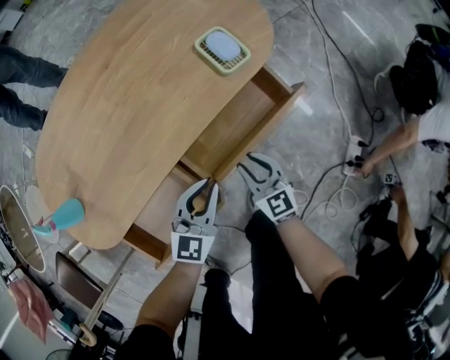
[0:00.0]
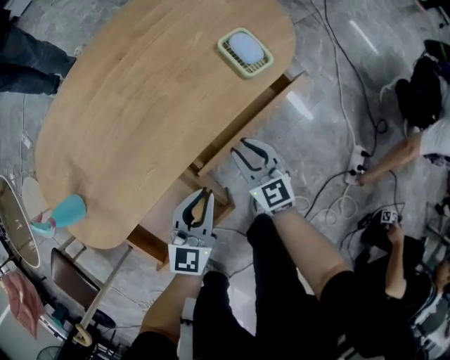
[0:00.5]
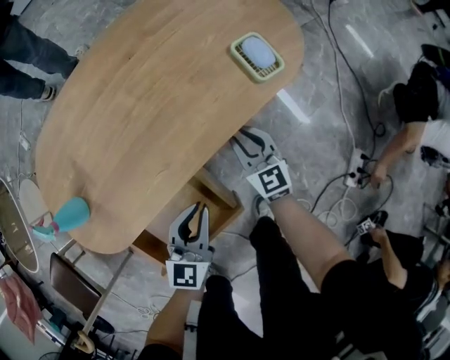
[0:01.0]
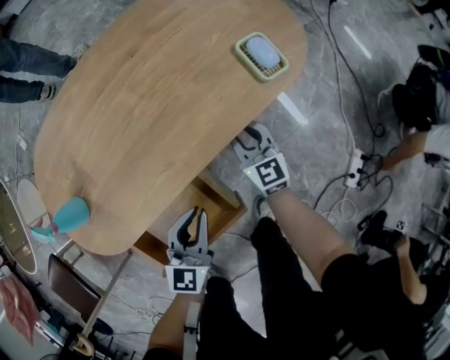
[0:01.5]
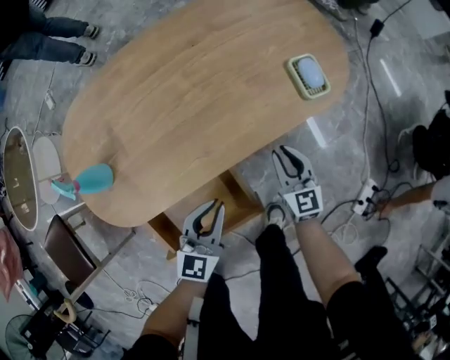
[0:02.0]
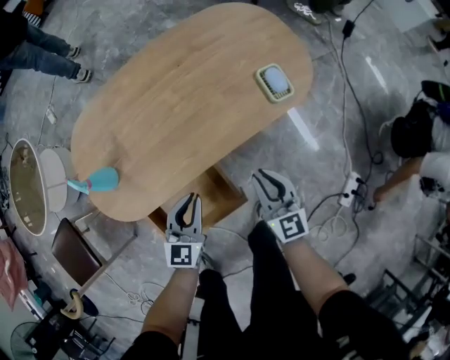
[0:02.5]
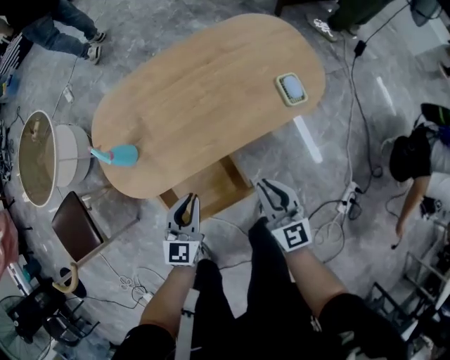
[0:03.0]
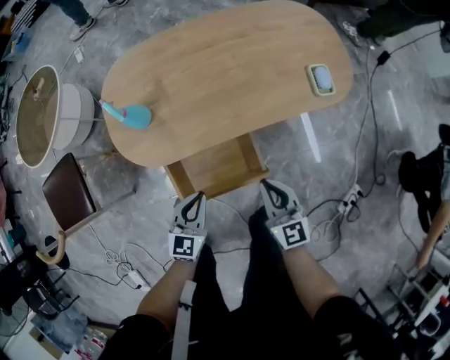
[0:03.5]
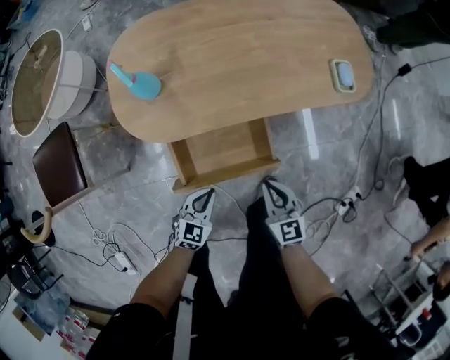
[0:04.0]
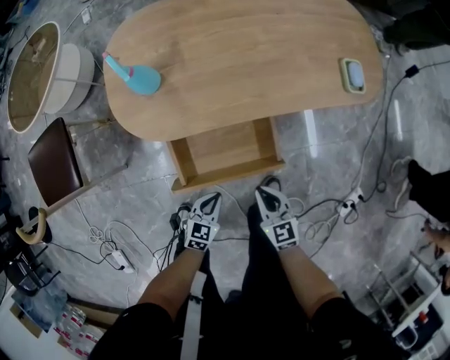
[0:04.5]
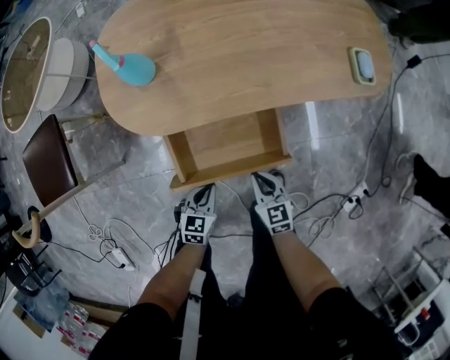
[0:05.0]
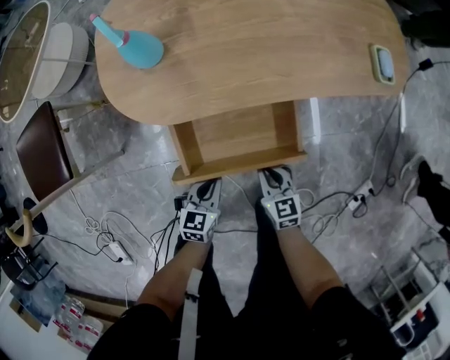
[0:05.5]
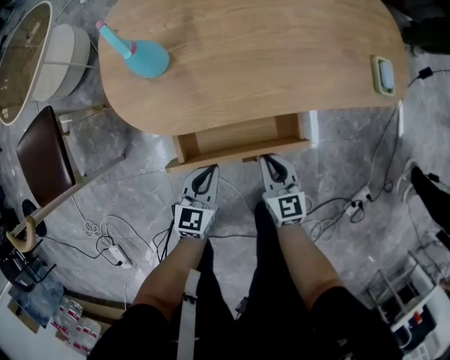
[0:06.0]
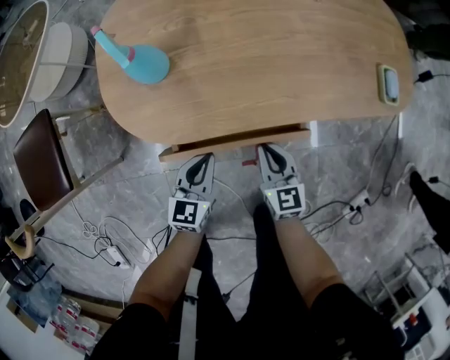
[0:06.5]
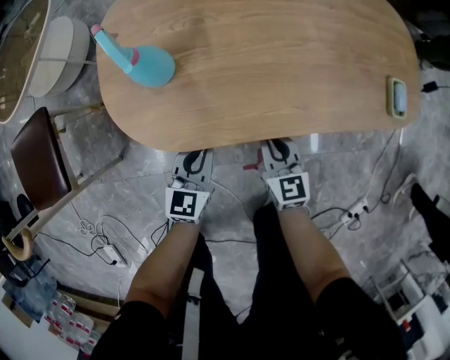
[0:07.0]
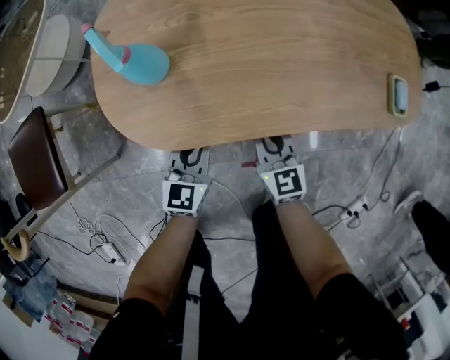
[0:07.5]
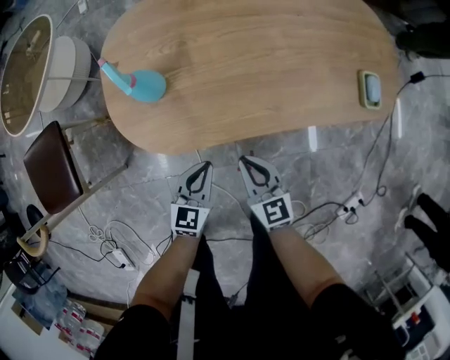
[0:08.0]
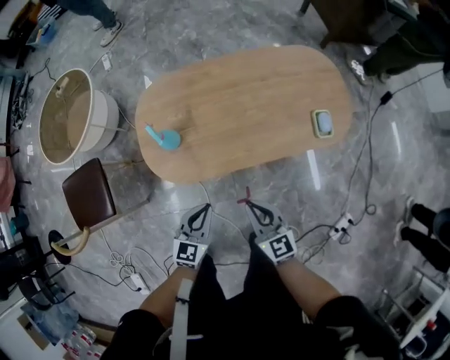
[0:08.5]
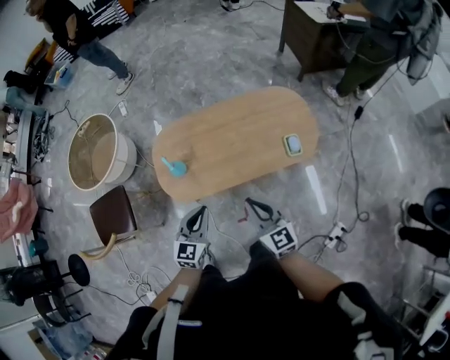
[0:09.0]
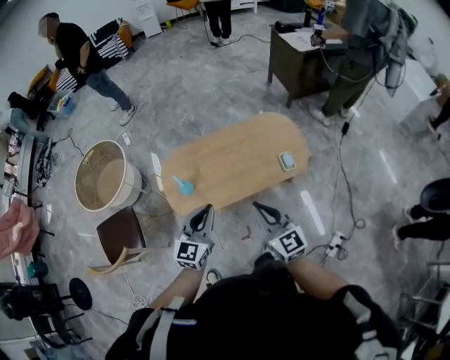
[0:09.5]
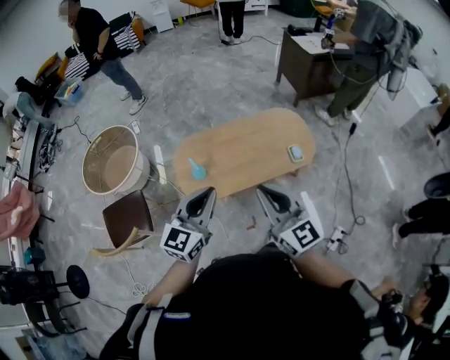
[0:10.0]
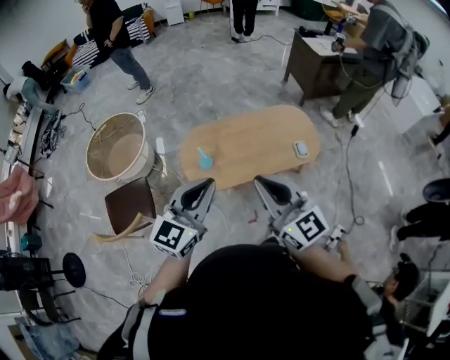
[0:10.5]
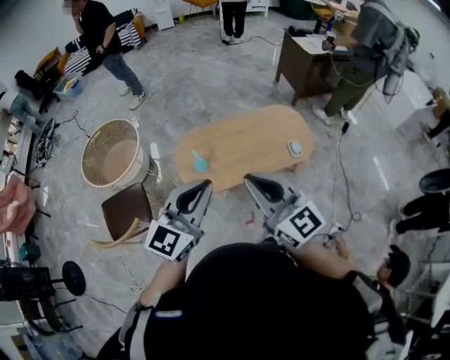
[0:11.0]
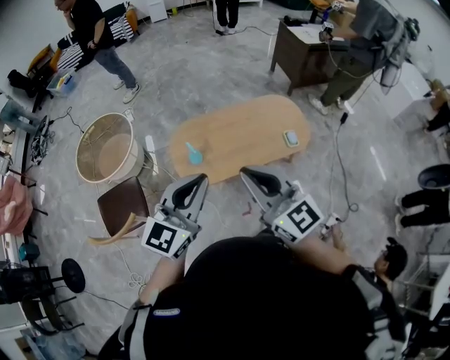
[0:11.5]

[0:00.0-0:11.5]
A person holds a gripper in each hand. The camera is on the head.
0:00.0 to 0:02.0: The right gripper moves forward and to the left, some 10 cm. Meanwhile the left gripper heads to the left, covering approximately 15 cm, and changes its angle by roughly 20 degrees.
0:02.0 to 0:04.0: Both grippers travel together backward and to the left, roughly 20 cm.
0:04.0 to 0:06.0: The left gripper is displaced forward by about 5 cm, and swivels some 20 degrees; the right gripper moves downward, forward and to the left, some 15 cm.
0:06.0 to 0:07.5: The two grippers go some 15 cm forward.
0:07.5 to 0:09.5: Both grippers travel together upward, approximately 50 cm. The left gripper swivels approximately 20 degrees.
0:09.5 to 0:11.5: The right gripper shifts roughly 25 cm upward and to the left, while the left gripper travels upward, to the left and backward by some 25 cm.

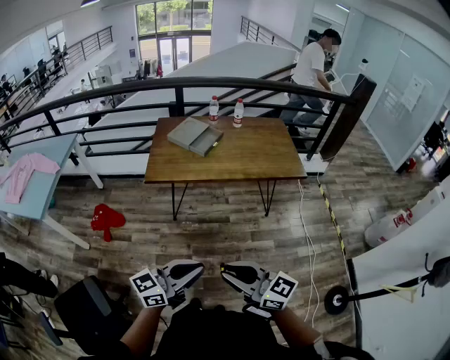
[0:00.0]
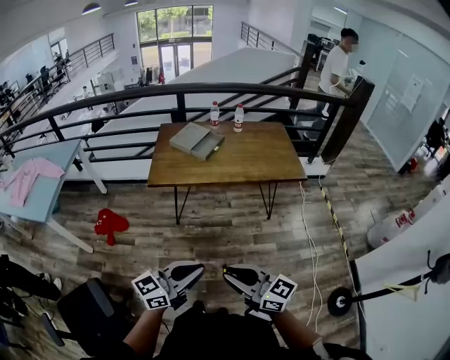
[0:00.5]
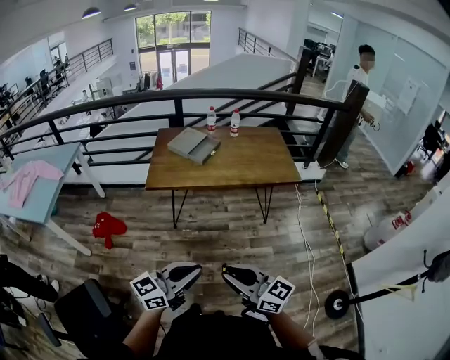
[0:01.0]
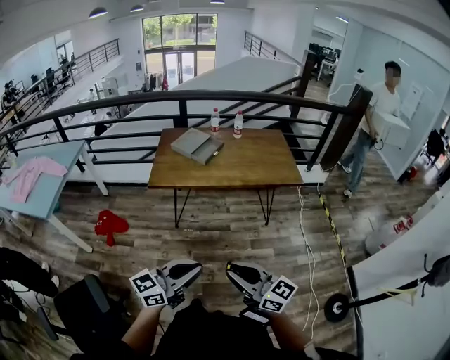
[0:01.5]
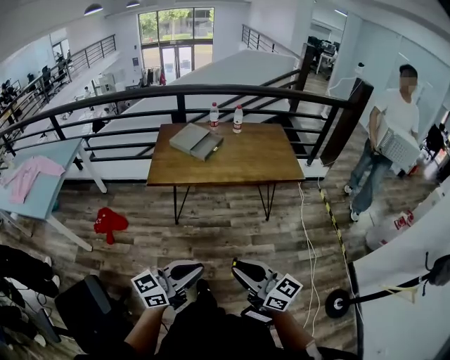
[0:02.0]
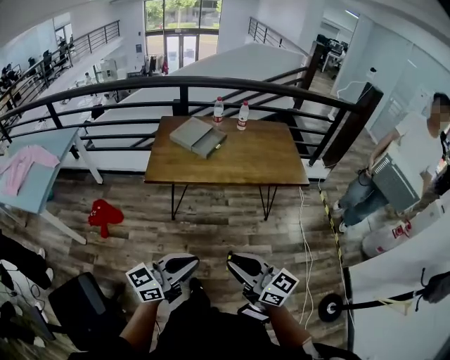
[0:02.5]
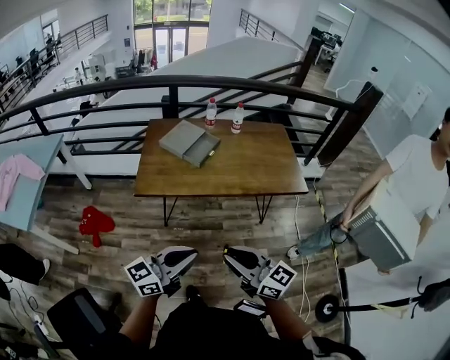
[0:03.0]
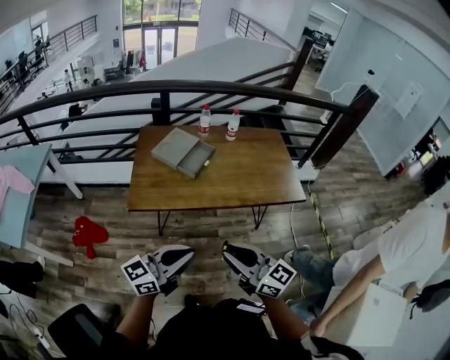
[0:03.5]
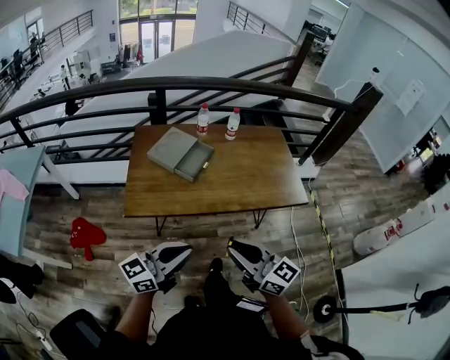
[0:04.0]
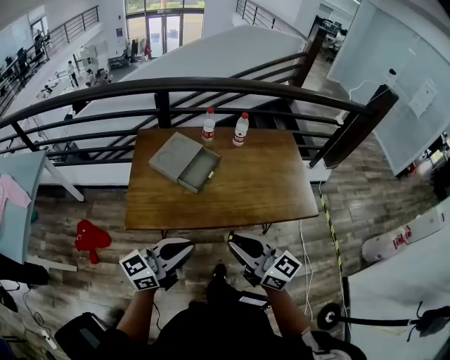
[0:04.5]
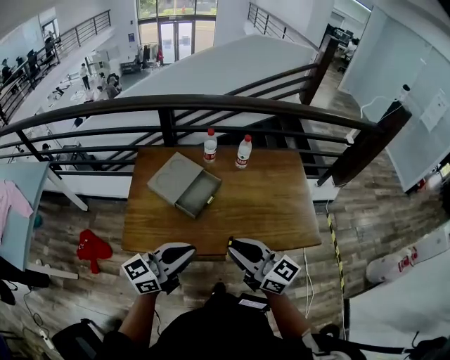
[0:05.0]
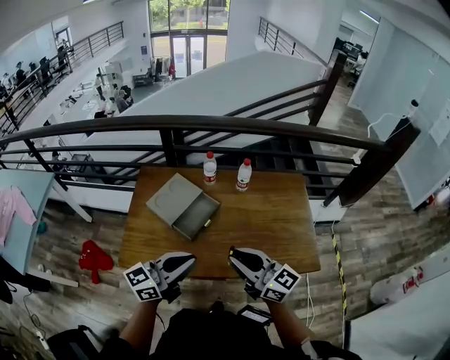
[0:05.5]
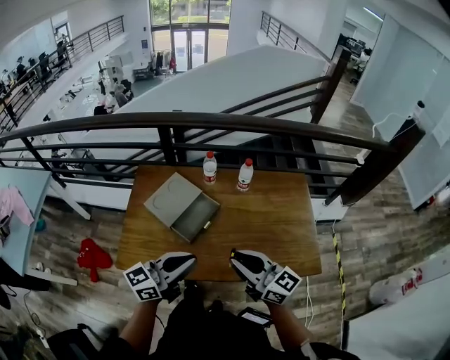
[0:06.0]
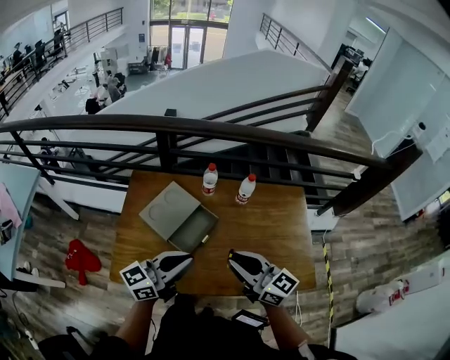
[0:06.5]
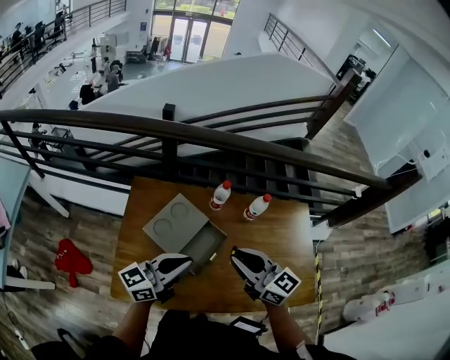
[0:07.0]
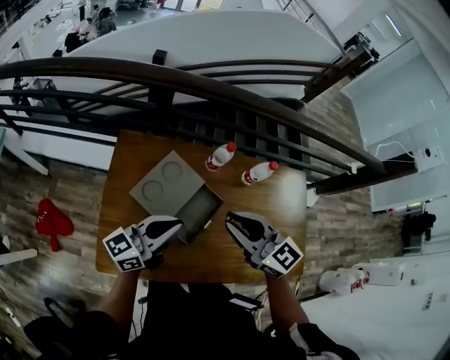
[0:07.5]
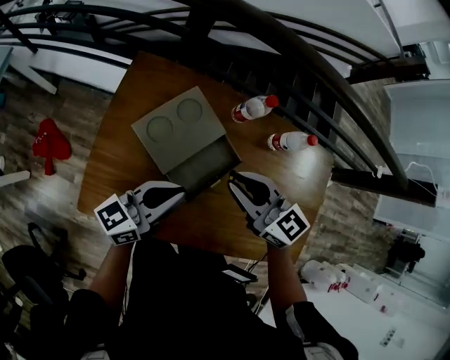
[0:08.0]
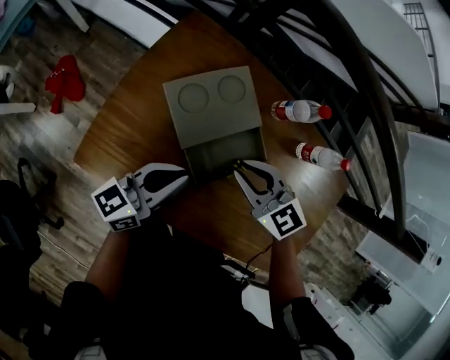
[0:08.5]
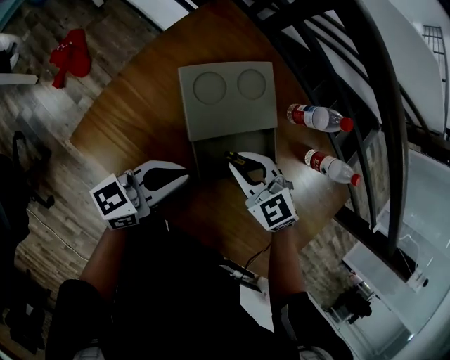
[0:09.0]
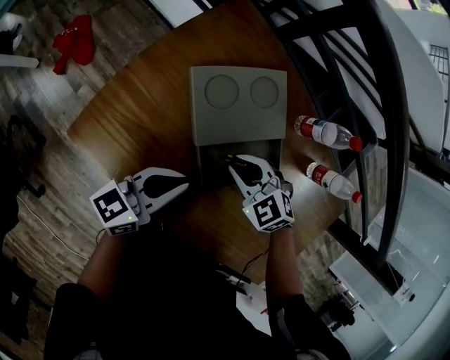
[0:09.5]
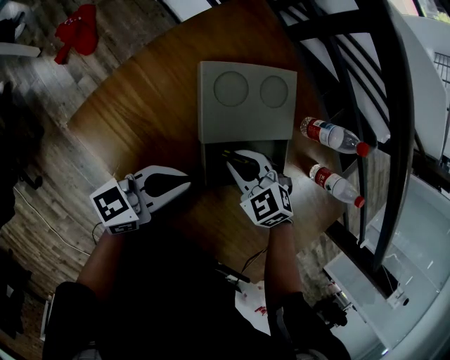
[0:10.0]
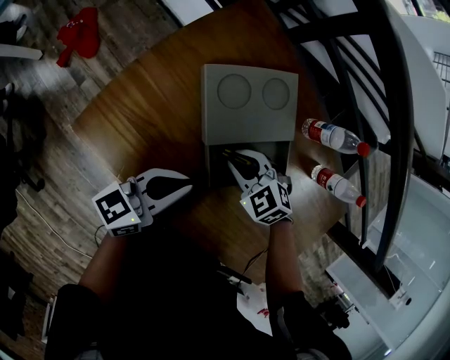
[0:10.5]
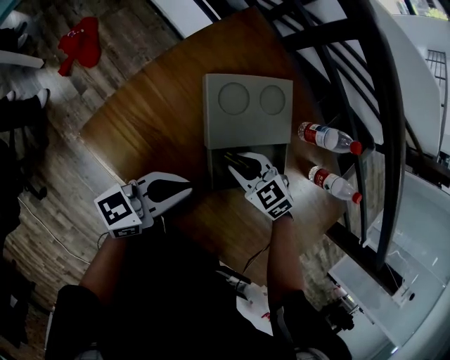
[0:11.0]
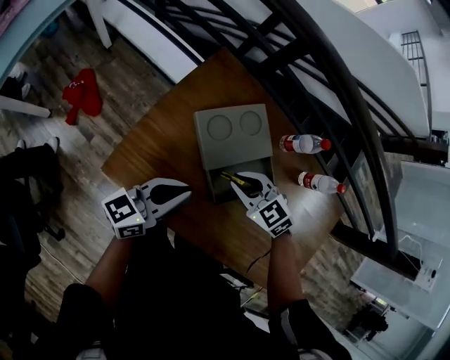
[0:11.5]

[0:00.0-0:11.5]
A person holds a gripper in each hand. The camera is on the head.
0:00.0 to 0:02.0: The right gripper shifts about 5 cm to the right.
0:02.0 to 0:04.0: Both grippers travel together forward, about 30 cm.
0:04.0 to 0:06.0: Both grippers move forward, some 30 cm.
0:06.0 to 0:07.5: Both grippers move forward and to the left, about 20 cm. The right gripper rotates about 20 degrees.
0:07.5 to 0:09.5: The right gripper heads downward, covering roughly 30 cm, and angles its fingers downward, by roughly 40 degrees, while the left gripper goes roughly 20 cm downward, and changes its angle by some 30 degrees.
0:09.5 to 0:11.5: Both grippers move upward, roughly 10 cm.

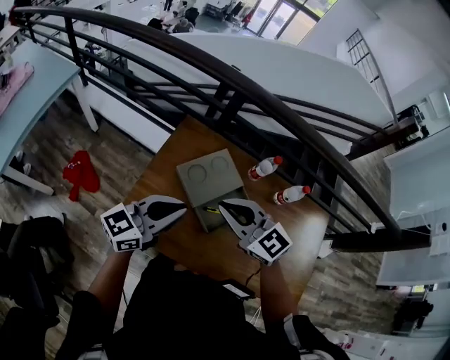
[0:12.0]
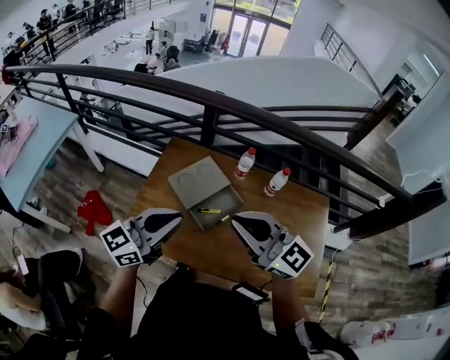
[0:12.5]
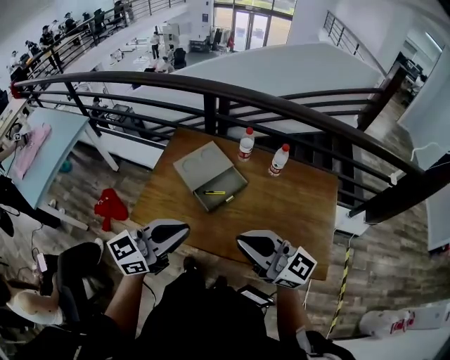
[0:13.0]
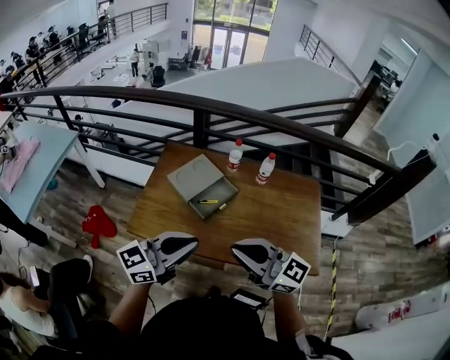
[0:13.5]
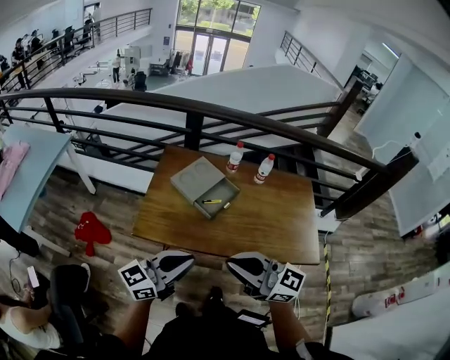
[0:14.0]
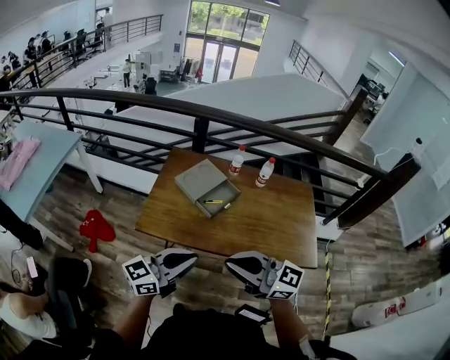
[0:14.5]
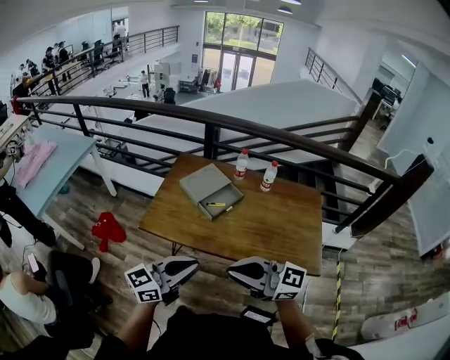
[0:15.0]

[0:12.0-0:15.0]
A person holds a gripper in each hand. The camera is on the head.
0:12.0 to 0:13.5: Both grippers move backward and to the right, roughly 30 cm. The right gripper swivels about 30 degrees.
0:13.5 to 0:15.0: The left gripper shifts by some 15 cm. Meanwhile the right gripper moves about 10 cm.

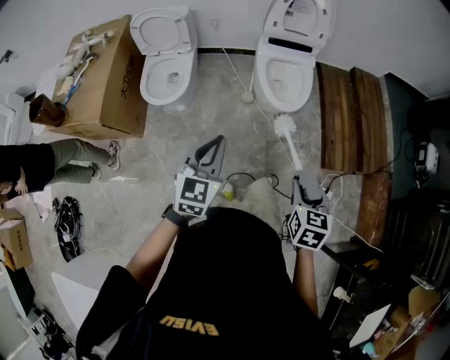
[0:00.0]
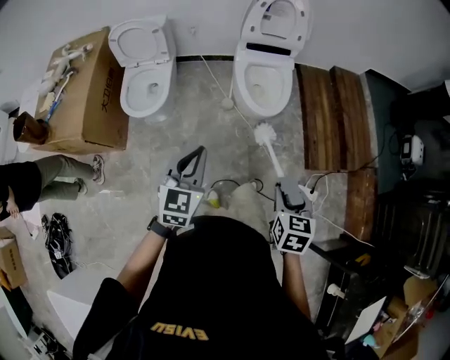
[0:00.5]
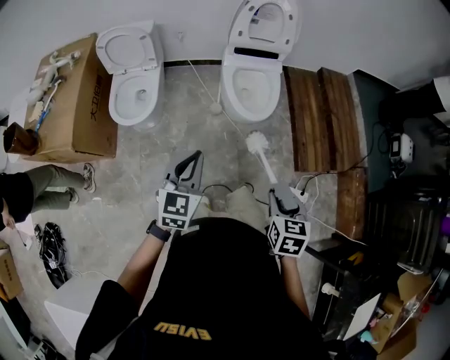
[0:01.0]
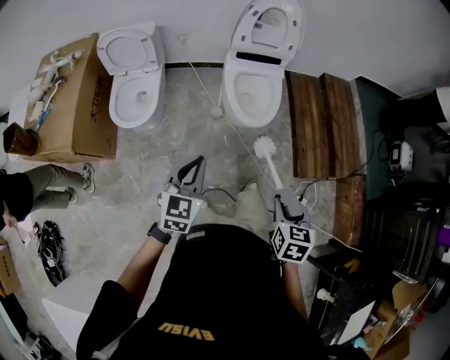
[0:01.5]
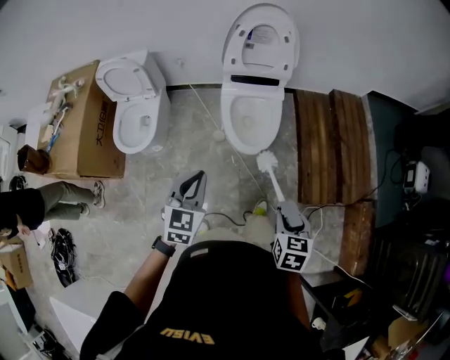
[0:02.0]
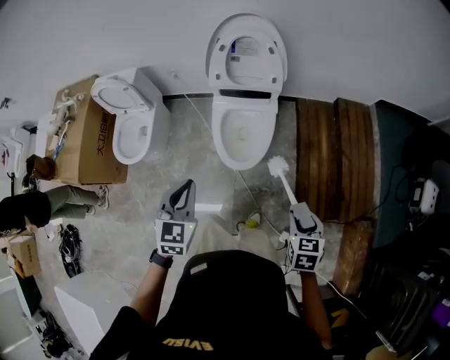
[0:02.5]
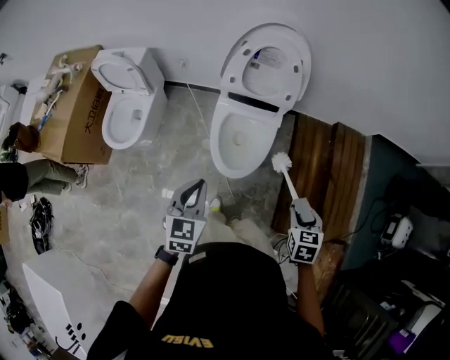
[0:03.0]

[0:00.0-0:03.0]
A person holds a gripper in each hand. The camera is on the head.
0:00.0 to 0:01.5: The left gripper shifts roughly 5 cm forward. The right gripper shifts by about 5 cm.
0:01.5 to 0:03.0: The grippers both shift forward and to the right by about 40 cm. The right gripper changes its angle by about 20 degrees.
